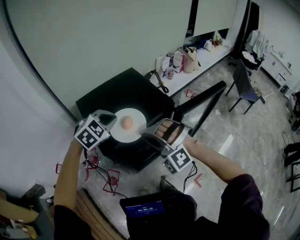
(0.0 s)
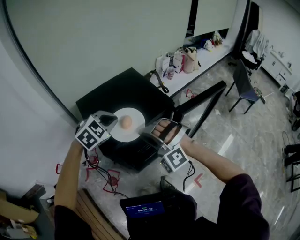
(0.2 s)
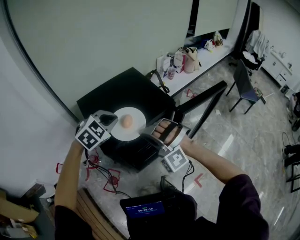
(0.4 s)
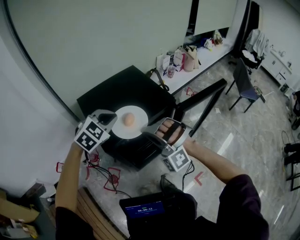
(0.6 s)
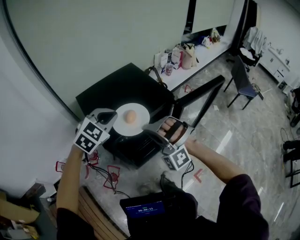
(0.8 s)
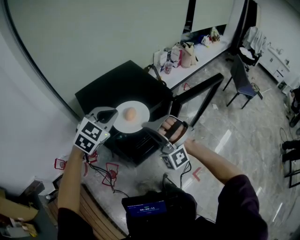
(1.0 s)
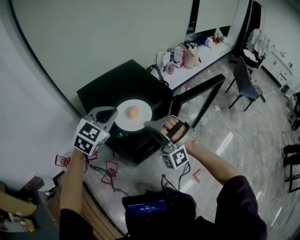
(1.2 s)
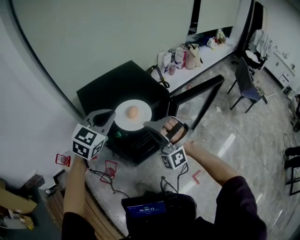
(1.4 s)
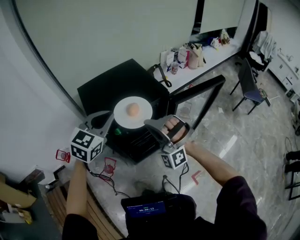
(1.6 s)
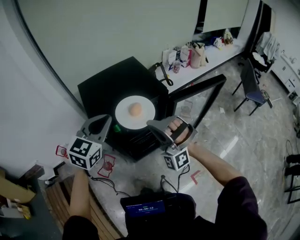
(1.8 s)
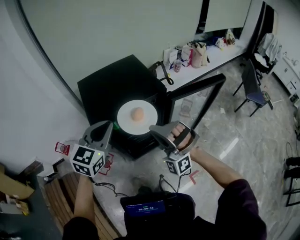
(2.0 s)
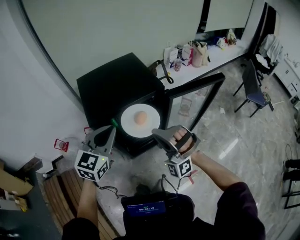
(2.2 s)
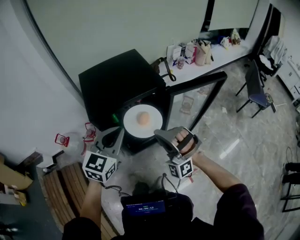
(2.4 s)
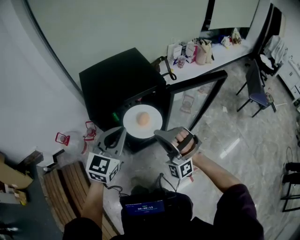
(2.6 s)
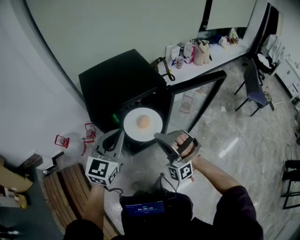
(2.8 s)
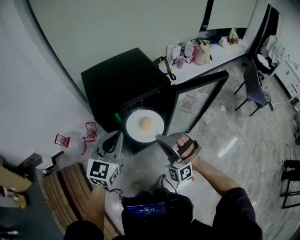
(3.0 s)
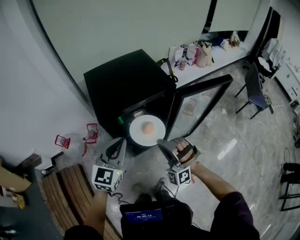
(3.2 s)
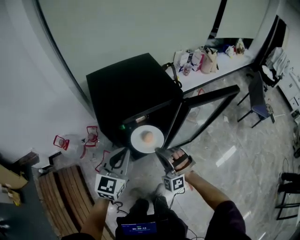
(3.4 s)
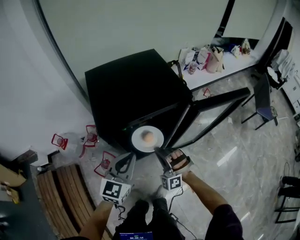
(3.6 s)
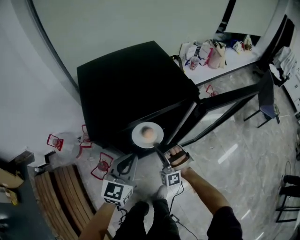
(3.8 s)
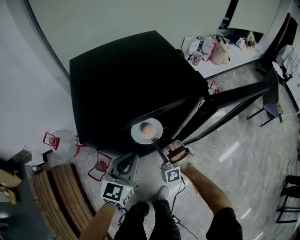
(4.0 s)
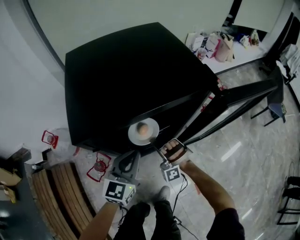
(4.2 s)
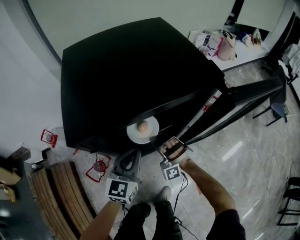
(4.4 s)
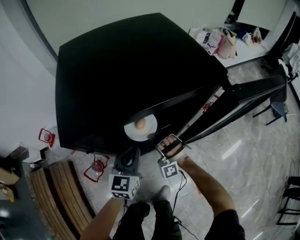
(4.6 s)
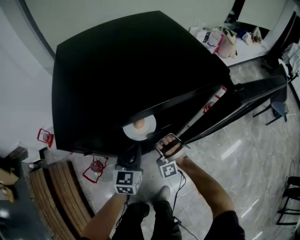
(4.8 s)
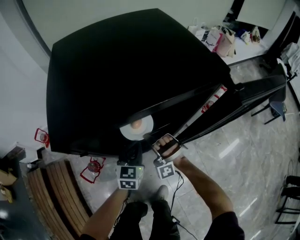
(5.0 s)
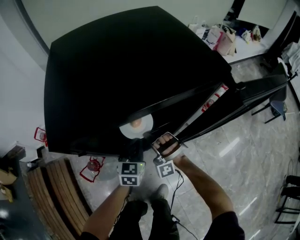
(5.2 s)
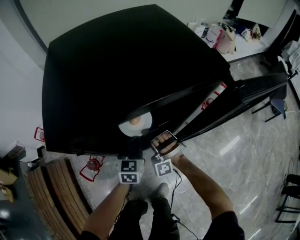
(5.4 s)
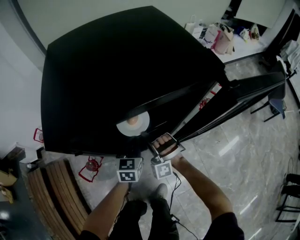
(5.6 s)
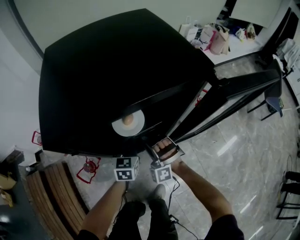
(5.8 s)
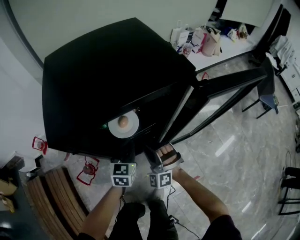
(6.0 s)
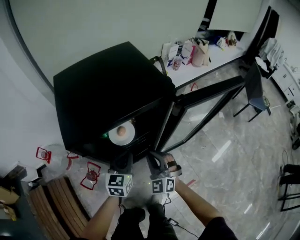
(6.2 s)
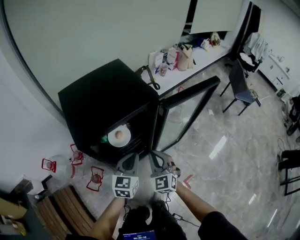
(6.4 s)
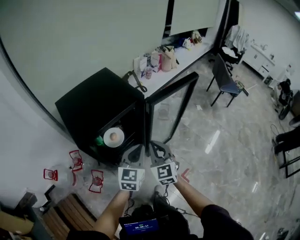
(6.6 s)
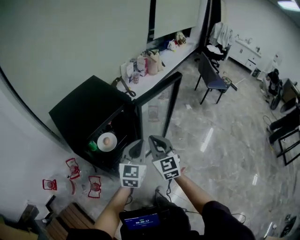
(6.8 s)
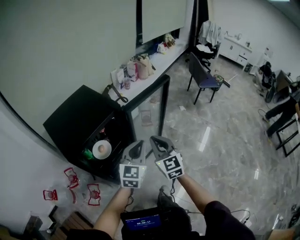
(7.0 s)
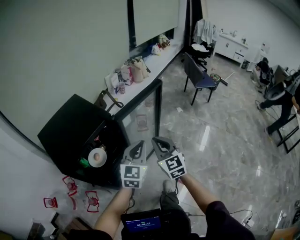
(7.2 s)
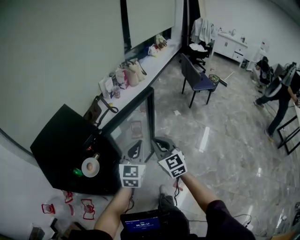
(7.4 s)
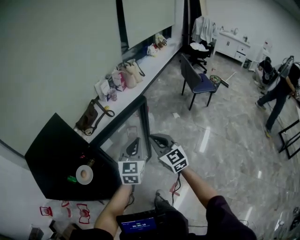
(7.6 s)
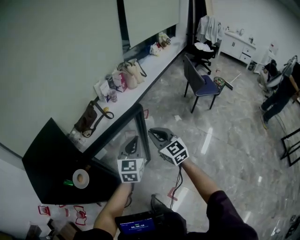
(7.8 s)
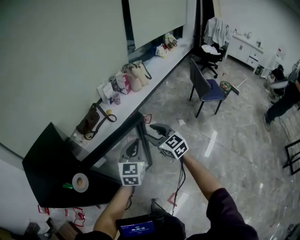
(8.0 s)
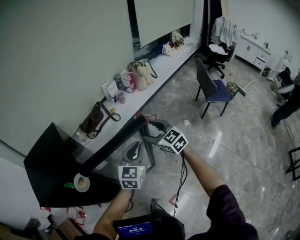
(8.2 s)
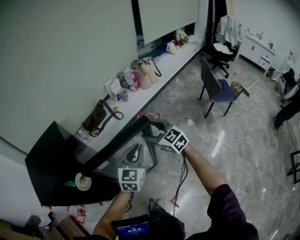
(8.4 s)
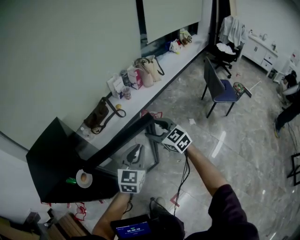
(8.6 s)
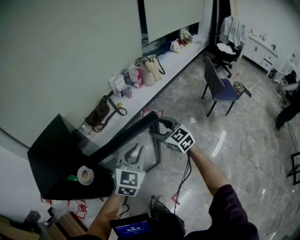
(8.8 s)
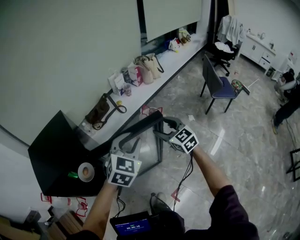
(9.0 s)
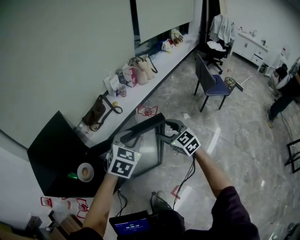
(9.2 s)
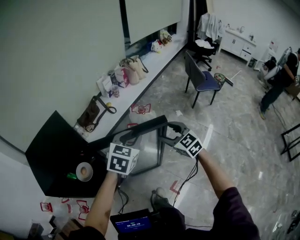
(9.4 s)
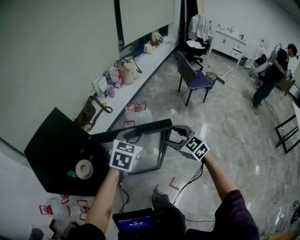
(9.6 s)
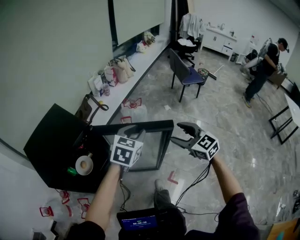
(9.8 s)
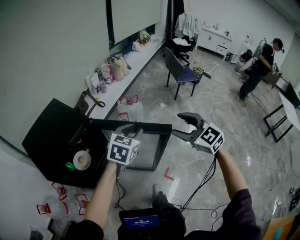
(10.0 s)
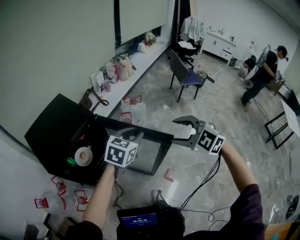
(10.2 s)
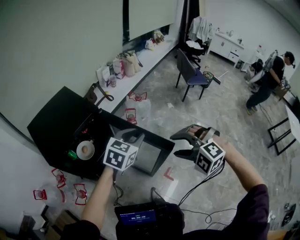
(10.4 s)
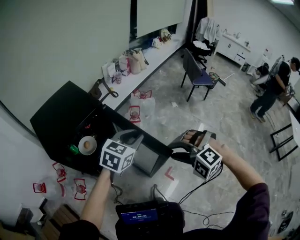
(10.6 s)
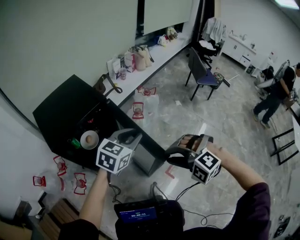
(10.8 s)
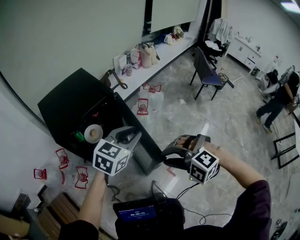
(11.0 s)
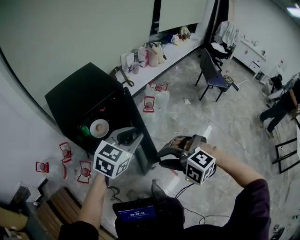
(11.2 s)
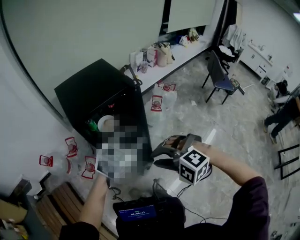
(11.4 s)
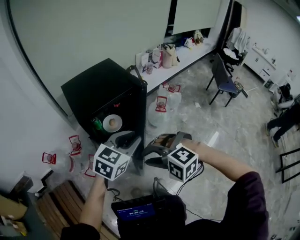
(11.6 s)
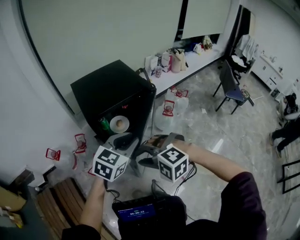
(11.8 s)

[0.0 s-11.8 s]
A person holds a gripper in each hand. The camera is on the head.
0.0 to 1.4 s: The left gripper goes roughly 10 cm backward and upward, and turns by approximately 30 degrees.
1.4 to 3.0 s: The left gripper goes some 15 cm backward, and changes its angle by roughly 20 degrees. The right gripper shifts approximately 15 cm backward, downward and to the right.
3.0 to 4.4 s: The right gripper heads downward and forward, covering approximately 35 cm. Meanwhile the left gripper travels downward by roughly 25 cm.
4.4 to 6.0 s: The left gripper shifts about 10 cm downward. The right gripper ends up some 5 cm from where it was, and rotates roughly 30 degrees.
6.0 to 7.4 s: The left gripper shifts by roughly 50 cm, and turns by roughly 40 degrees, while the right gripper shifts by some 50 cm, and twists approximately 60 degrees clockwise, seen from behind.
7.4 to 8.8 s: The left gripper moves forward and to the right, roughly 15 cm, while the right gripper heads forward and to the right, covering approximately 25 cm, changes its angle by some 30 degrees, and opens.
8.8 to 10.4 s: The left gripper shifts about 20 cm backward, and changes its angle by approximately 30 degrees. Meanwhile the right gripper shifts about 40 cm backward, and rotates around the line of its fingers by roughly 50 degrees, counterclockwise from behind.
10.4 to 11.8 s: The right gripper changes place by some 35 cm, rotates about 30 degrees, and closes. The left gripper changes place by roughly 25 cm.

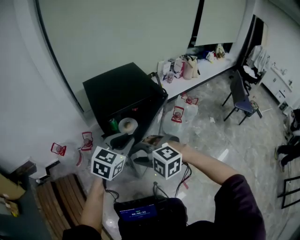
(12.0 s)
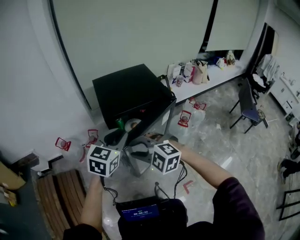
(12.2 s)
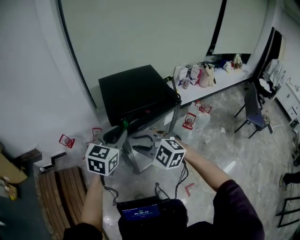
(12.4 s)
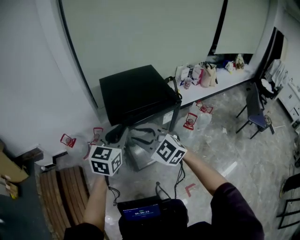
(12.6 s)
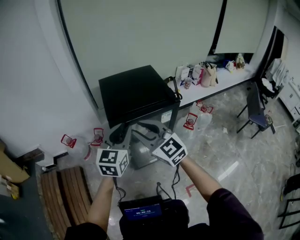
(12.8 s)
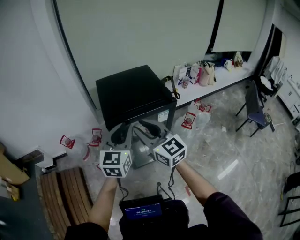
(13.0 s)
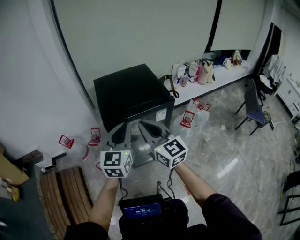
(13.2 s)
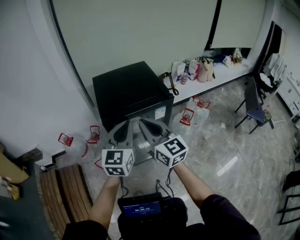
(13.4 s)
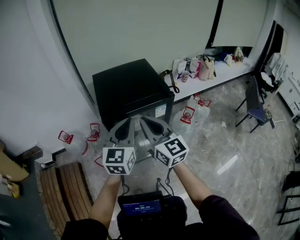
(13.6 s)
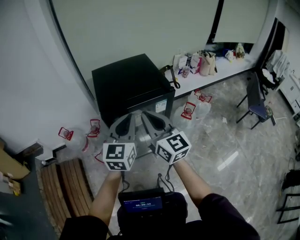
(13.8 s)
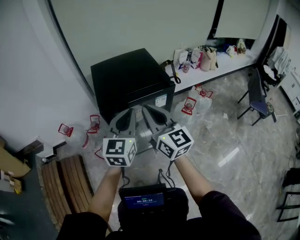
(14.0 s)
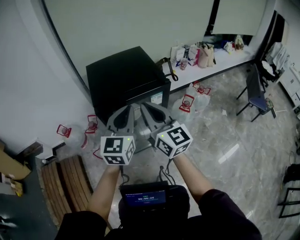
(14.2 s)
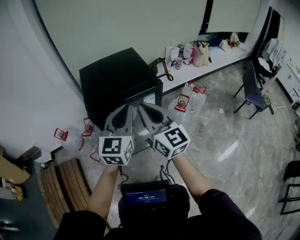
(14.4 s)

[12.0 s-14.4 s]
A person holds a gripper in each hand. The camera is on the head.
12.0 to 13.2 s: The left gripper goes approximately 5 cm upward, and rotates roughly 30 degrees. The right gripper goes approximately 15 cm upward, forward and to the right, points its fingers roughly 50 degrees further upward, and closes.
13.2 to 14.4 s: Both grippers travel together to the right, some 5 cm.

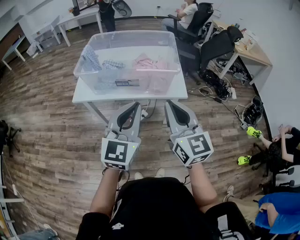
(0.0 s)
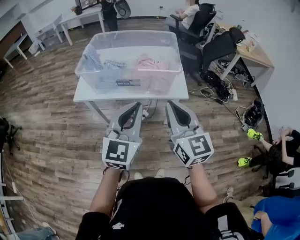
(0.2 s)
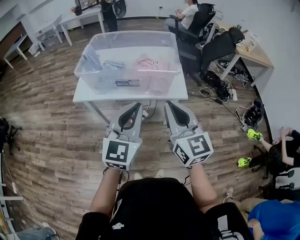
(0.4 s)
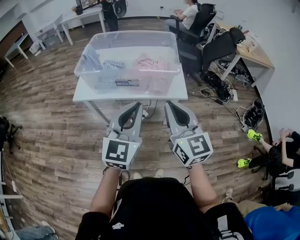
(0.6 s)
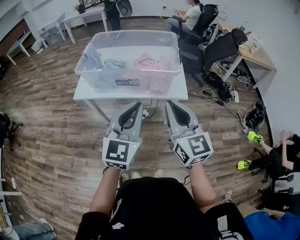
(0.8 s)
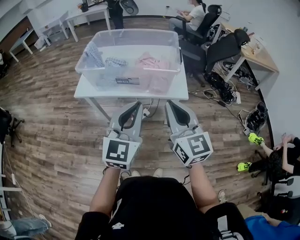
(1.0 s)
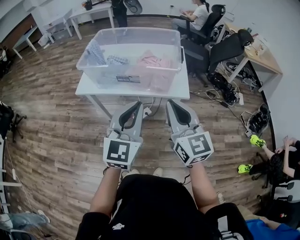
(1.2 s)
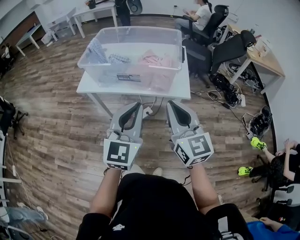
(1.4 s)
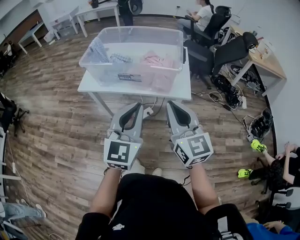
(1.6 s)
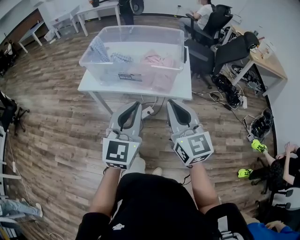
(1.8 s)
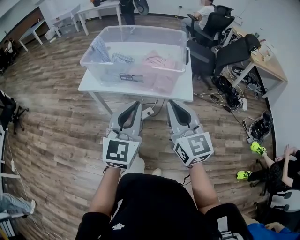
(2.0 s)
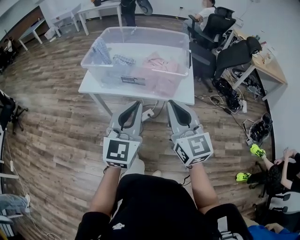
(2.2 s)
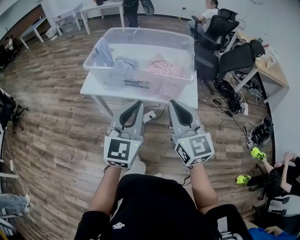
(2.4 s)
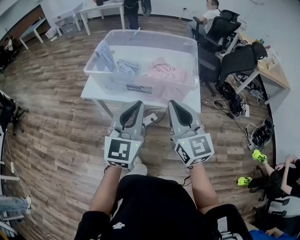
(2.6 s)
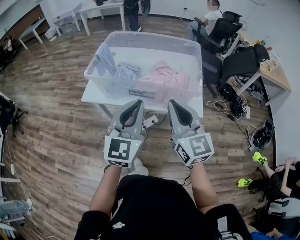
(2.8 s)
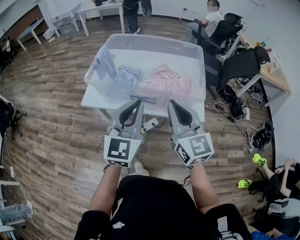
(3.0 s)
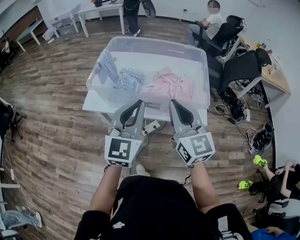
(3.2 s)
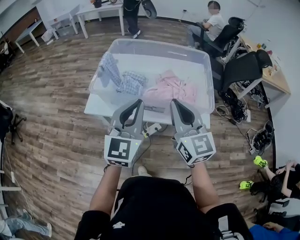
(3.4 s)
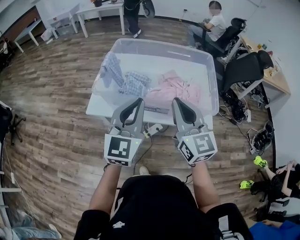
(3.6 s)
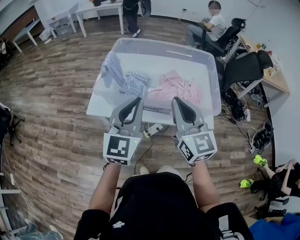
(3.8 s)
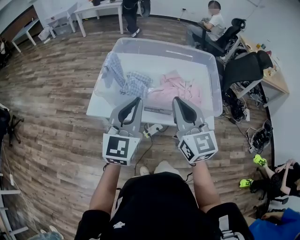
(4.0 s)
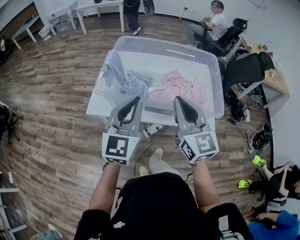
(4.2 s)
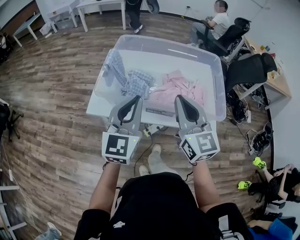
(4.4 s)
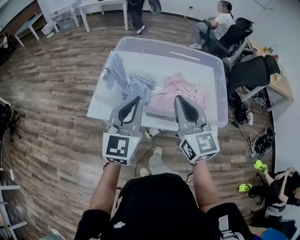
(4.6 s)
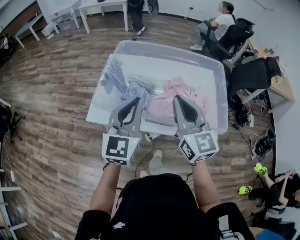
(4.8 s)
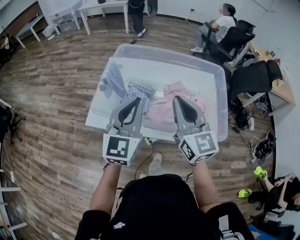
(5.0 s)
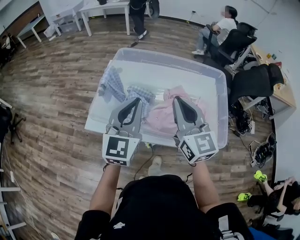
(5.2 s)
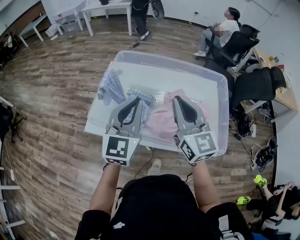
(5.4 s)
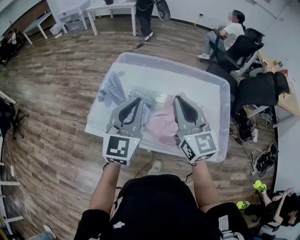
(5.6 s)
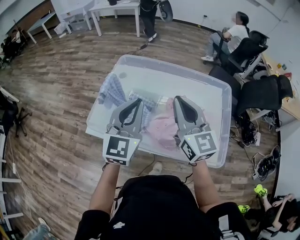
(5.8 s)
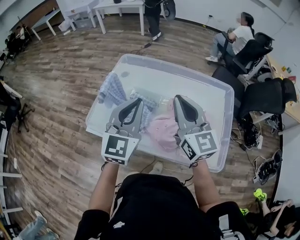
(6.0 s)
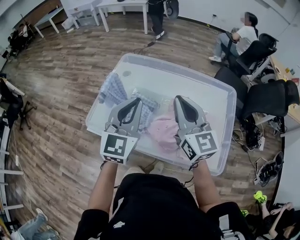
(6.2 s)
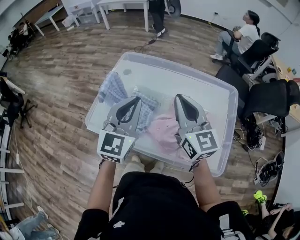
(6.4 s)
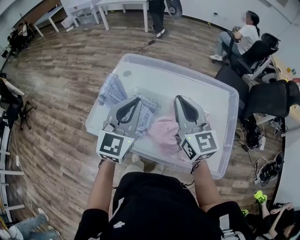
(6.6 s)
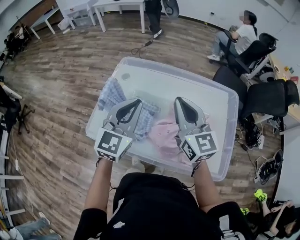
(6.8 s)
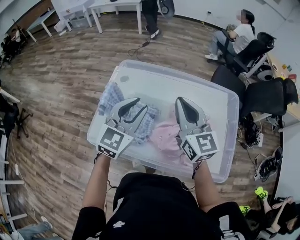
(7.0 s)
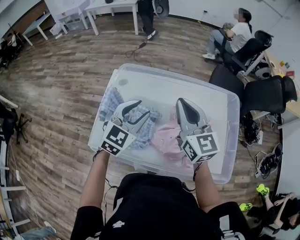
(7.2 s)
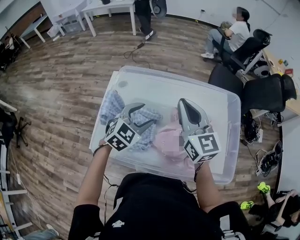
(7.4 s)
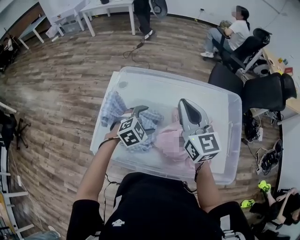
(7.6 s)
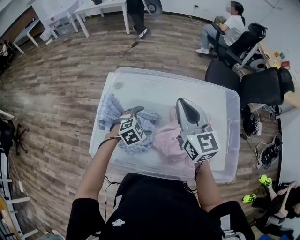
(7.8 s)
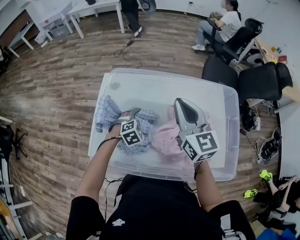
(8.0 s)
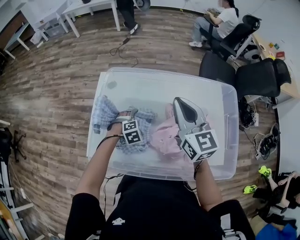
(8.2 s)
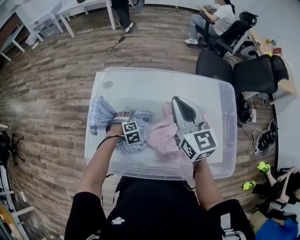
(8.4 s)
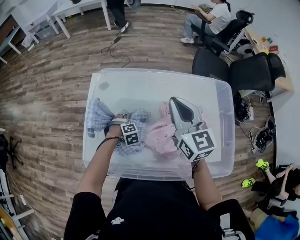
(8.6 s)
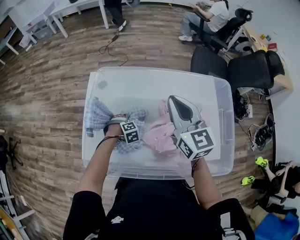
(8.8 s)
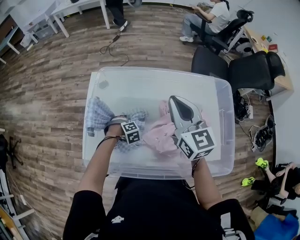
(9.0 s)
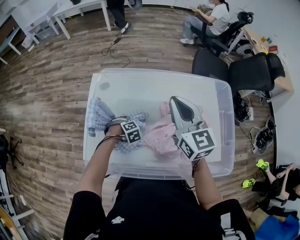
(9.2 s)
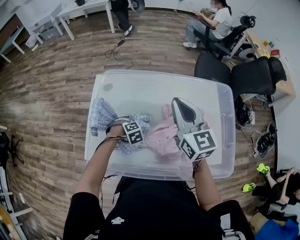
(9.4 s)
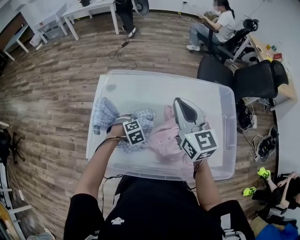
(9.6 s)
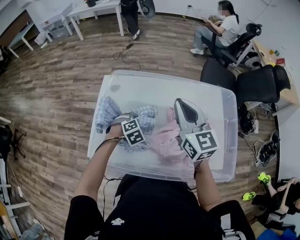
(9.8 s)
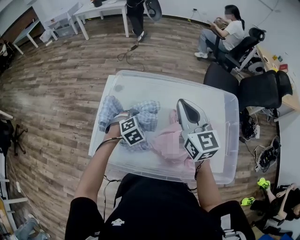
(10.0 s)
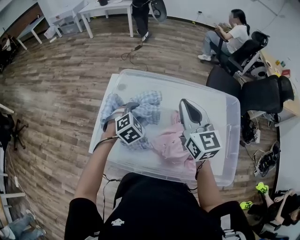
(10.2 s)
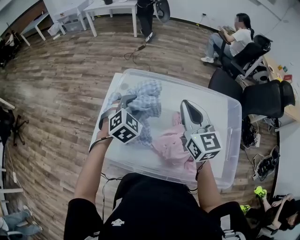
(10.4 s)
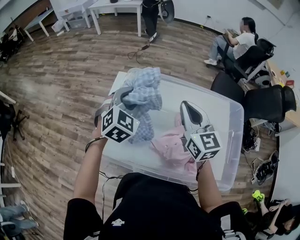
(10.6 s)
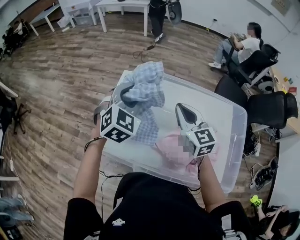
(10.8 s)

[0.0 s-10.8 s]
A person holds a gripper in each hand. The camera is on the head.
0.0 to 1.6 s: Both grippers move to the right, approximately 5 cm.
1.6 to 3.0 s: Both grippers travel together forward and to the left, some 20 cm.
3.0 to 4.6 s: The two grippers go roughly 15 cm forward and to the left.
4.6 to 6.2 s: The two grippers go about 15 cm forward.
6.2 to 7.8 s: The right gripper goes about 10 cm forward. Meanwhile the left gripper goes approximately 25 cm downward, tips its fingers downward by about 50 degrees, and opens up.
7.8 to 9.2 s: The left gripper travels downward by about 15 cm, changes its angle by approximately 30 degrees, and closes up.
9.2 to 10.8 s: The right gripper ends up roughly 10 cm from where it was, while the left gripper shifts some 35 cm upward, and angles its fingers upward, by approximately 50 degrees.
